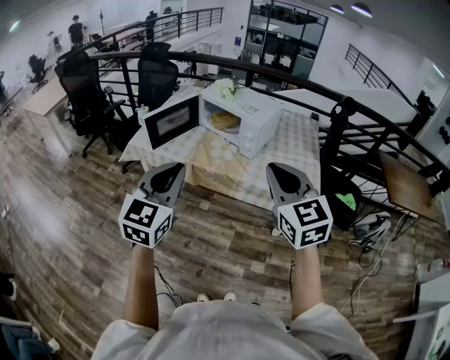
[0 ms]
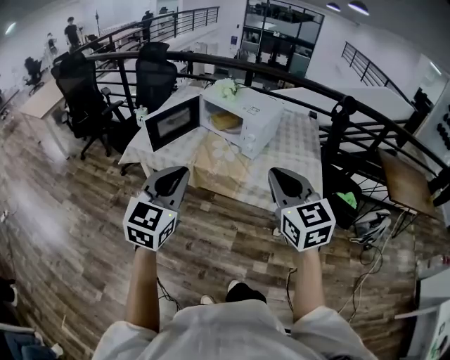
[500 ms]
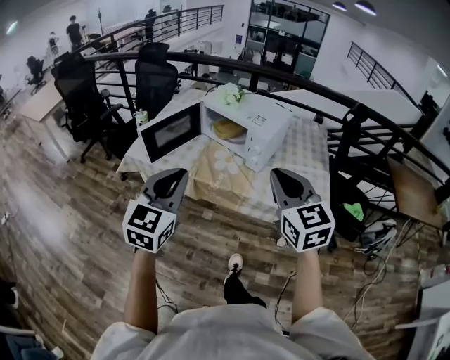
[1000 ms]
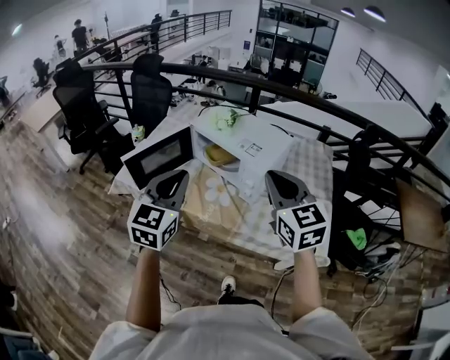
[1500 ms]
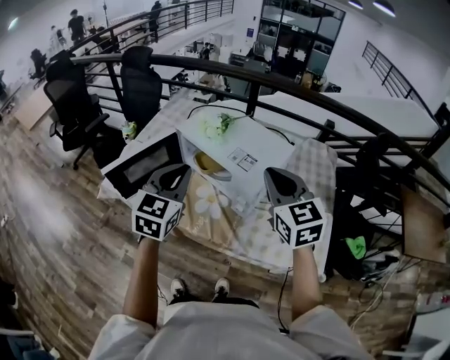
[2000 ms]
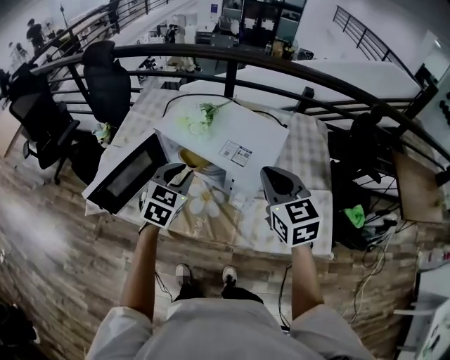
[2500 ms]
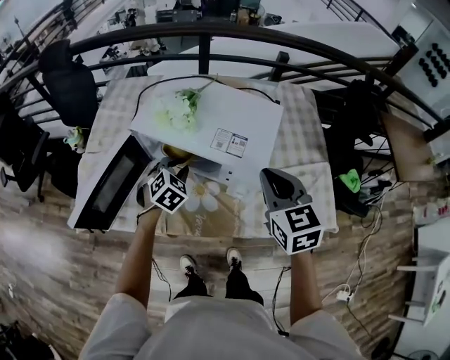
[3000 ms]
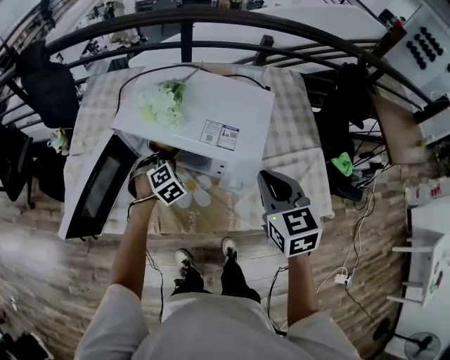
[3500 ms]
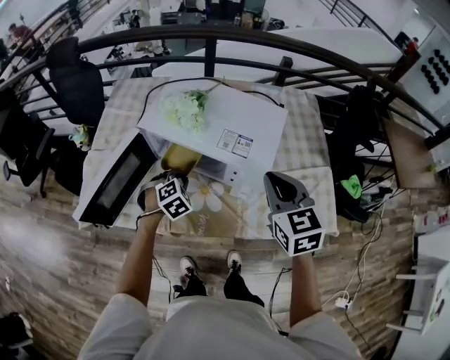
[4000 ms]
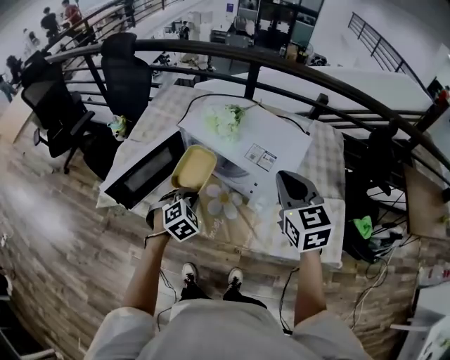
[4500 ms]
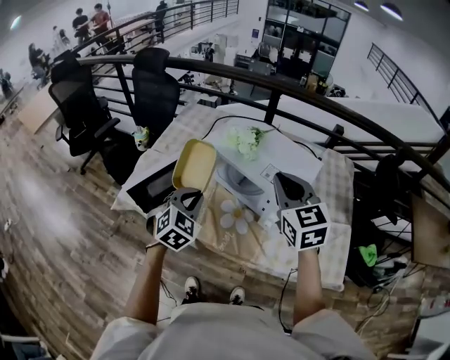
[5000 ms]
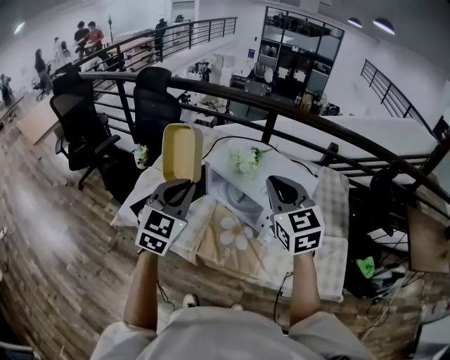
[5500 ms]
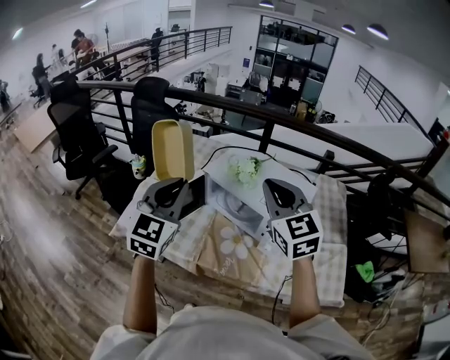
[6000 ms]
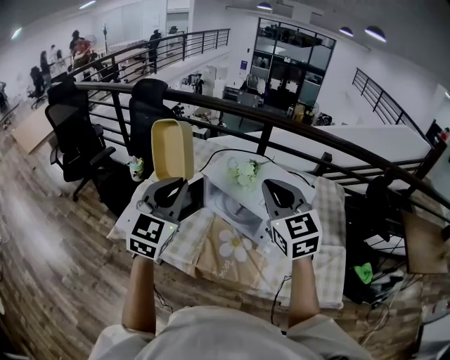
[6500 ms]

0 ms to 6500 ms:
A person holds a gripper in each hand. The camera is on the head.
0 ms to 2000 ms: Both grippers move forward, some 20 cm.
2000 ms to 4500 ms: The left gripper is displaced downward by some 25 cm, and tips its fingers downward by some 40 degrees. The right gripper travels downward by roughly 5 cm.
4500 ms to 6500 ms: The left gripper shifts some 30 cm upward, and tips its fingers upward by approximately 50 degrees. The right gripper shifts some 15 cm to the left and upward.

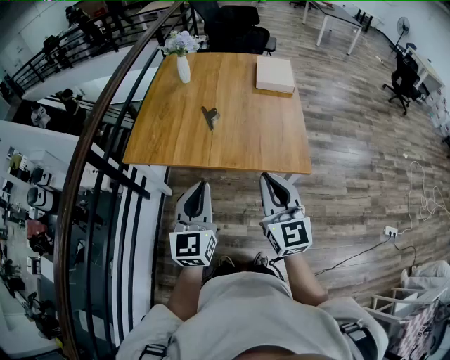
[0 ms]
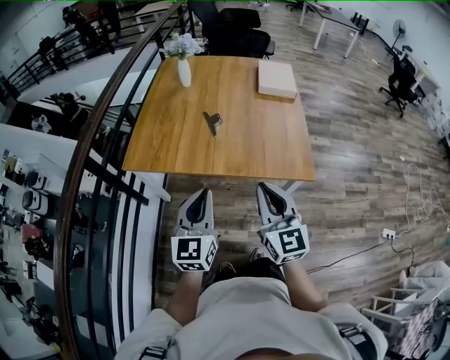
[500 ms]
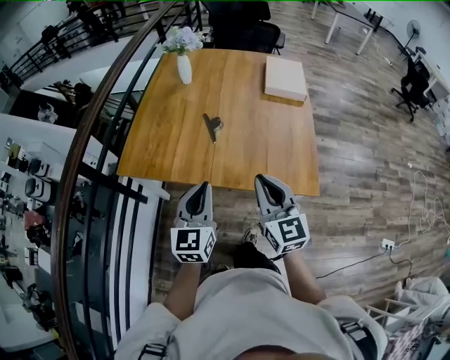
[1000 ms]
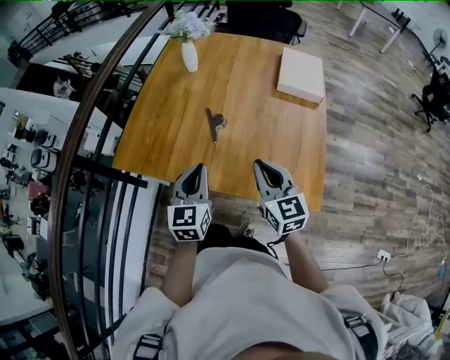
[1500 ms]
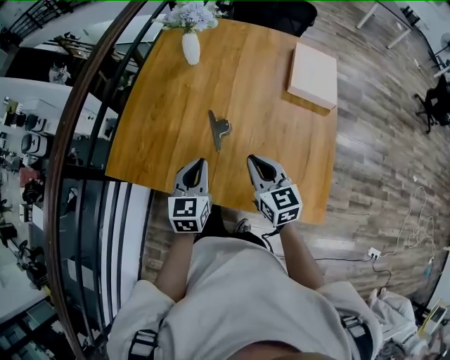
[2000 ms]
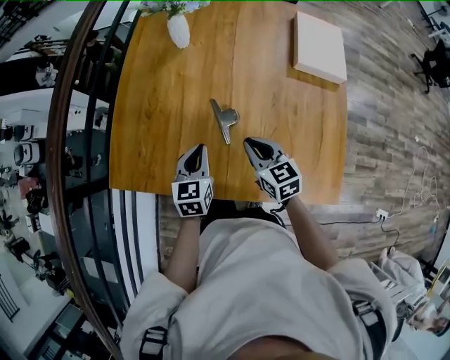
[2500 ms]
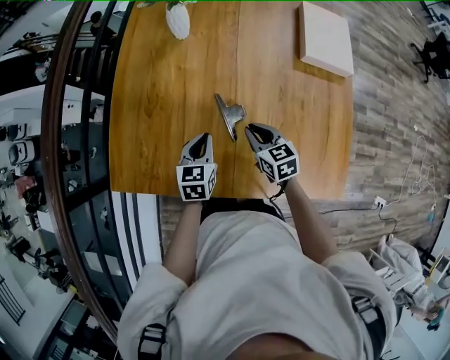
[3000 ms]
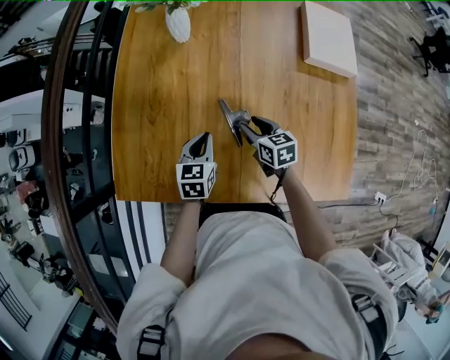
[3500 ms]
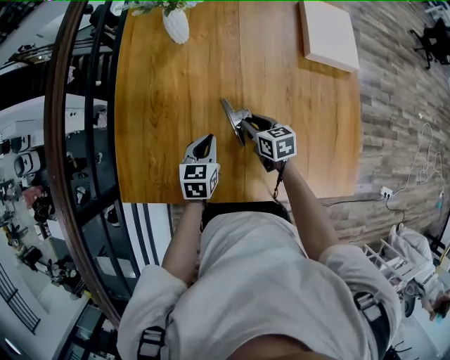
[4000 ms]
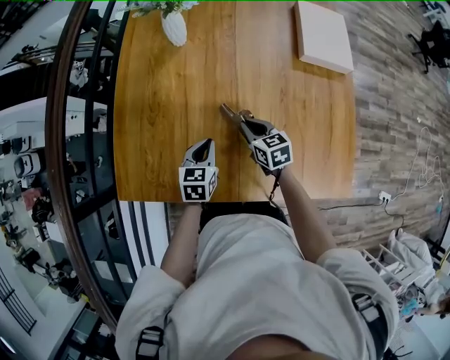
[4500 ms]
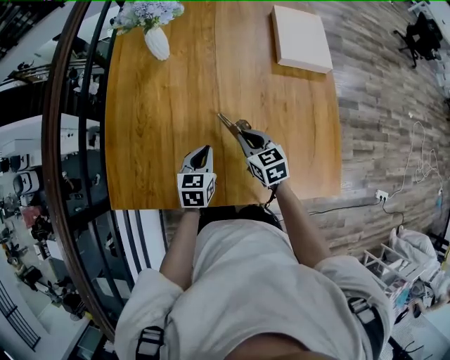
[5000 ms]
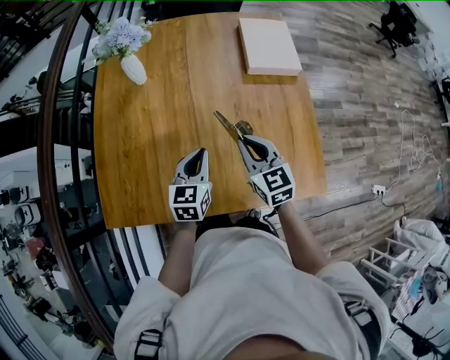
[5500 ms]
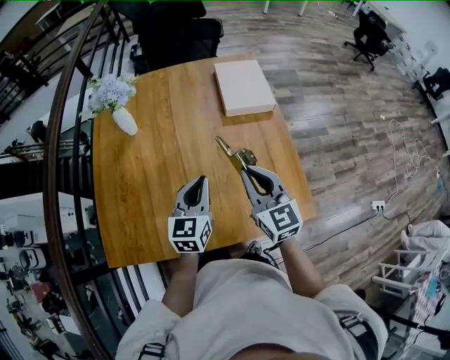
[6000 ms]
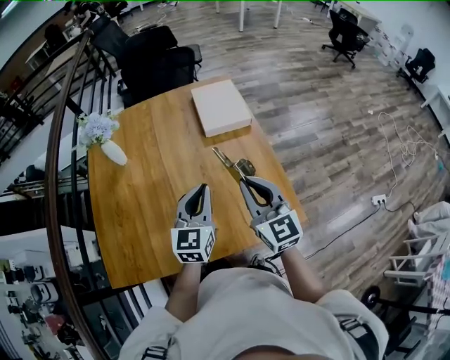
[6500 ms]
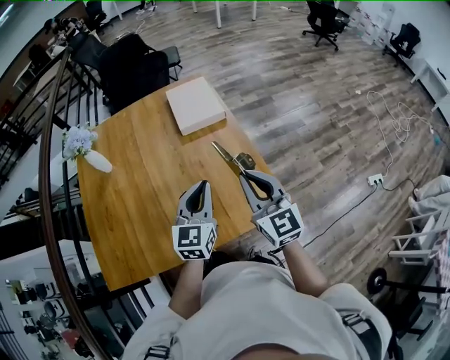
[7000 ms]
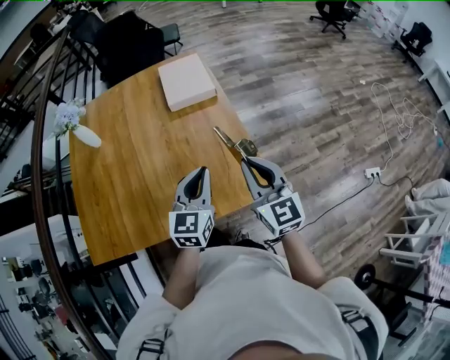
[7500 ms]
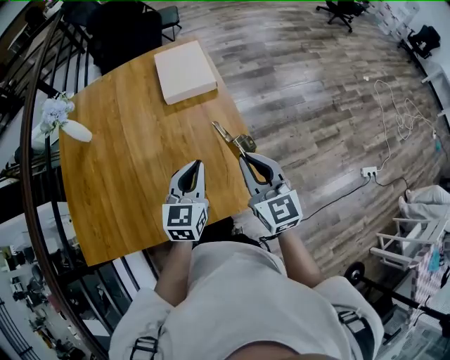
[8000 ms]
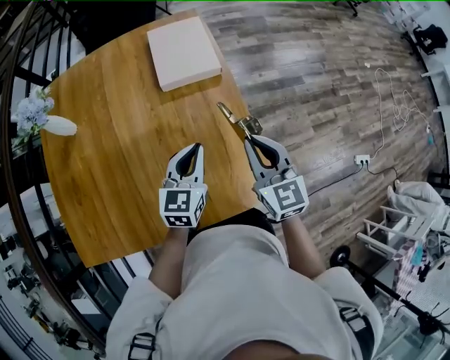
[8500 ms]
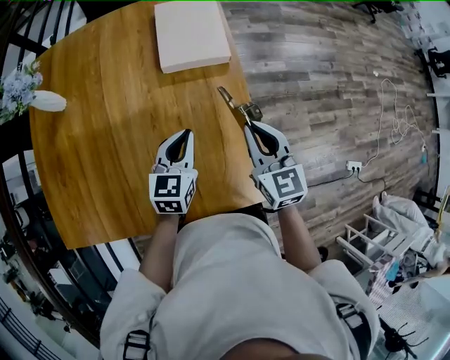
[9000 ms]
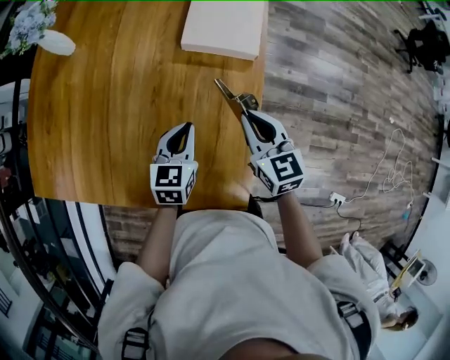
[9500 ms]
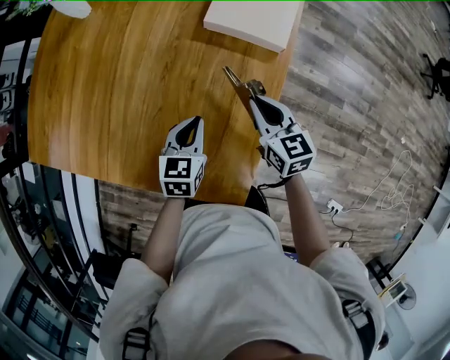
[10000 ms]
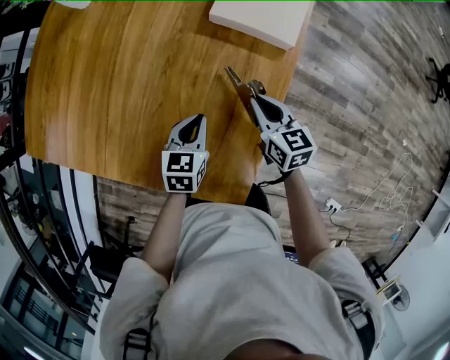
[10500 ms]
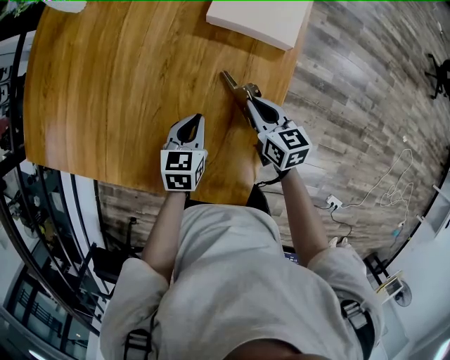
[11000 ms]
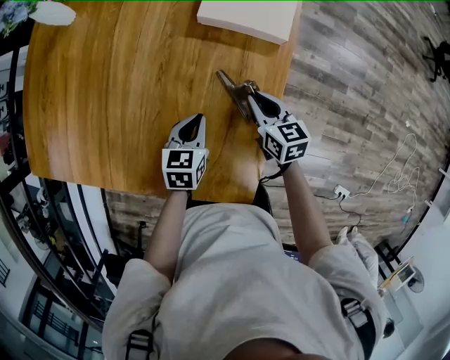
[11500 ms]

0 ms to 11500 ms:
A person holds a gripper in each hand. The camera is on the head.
0 ms to 2000 ms: The two grippers go about 40 cm forward and downward. The left gripper rotates some 20 degrees; the right gripper turns by approximately 30 degrees.
2000 ms to 4000 ms: Both grippers travel together downward and forward, roughly 25 cm. The left gripper swivels some 20 degrees; the right gripper rotates approximately 30 degrees, and opens up.
4000 ms to 6000 ms: The two grippers go approximately 30 cm upward and to the right. The left gripper rotates about 30 degrees. The right gripper points its fingers about 30 degrees further upward, and closes its fingers.
6000 ms to 7500 ms: The left gripper travels to the right by approximately 25 cm, while the right gripper moves to the right and backward, some 25 cm.
7500 ms to 9500 ms: Both grippers move forward and downward, about 30 cm. The right gripper rotates about 30 degrees. The left gripper rotates roughly 30 degrees.
9500 ms to 11500 ms: The grippers both shift downward by approximately 10 cm.

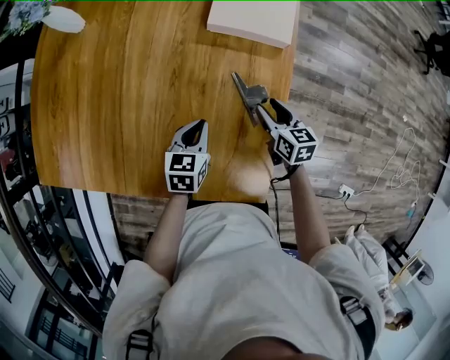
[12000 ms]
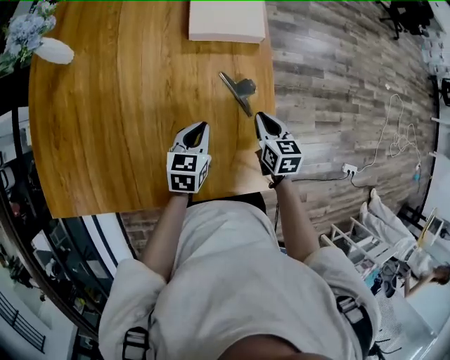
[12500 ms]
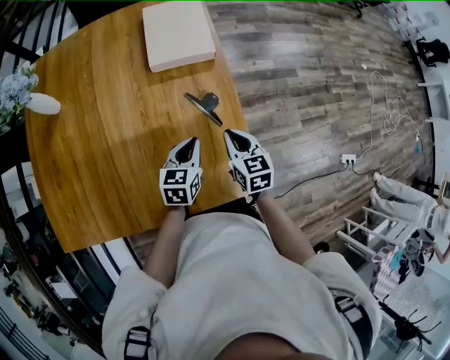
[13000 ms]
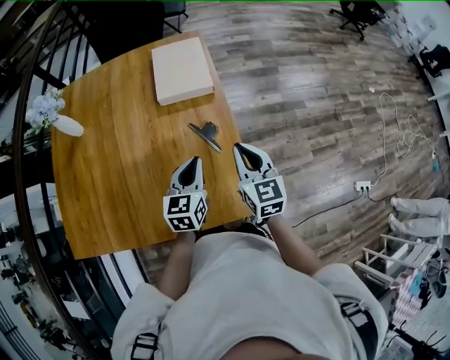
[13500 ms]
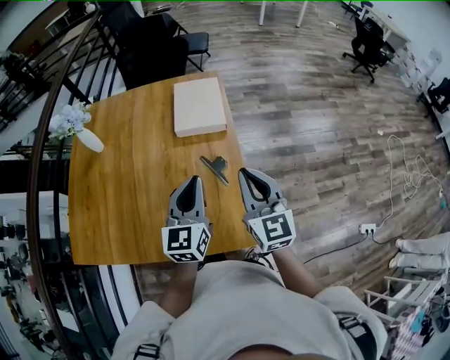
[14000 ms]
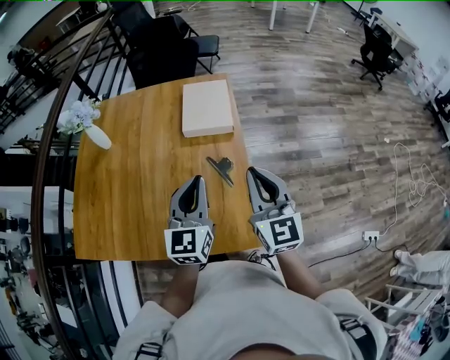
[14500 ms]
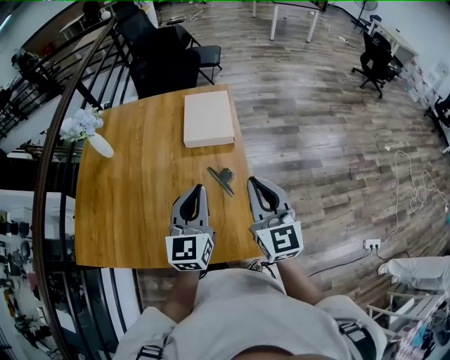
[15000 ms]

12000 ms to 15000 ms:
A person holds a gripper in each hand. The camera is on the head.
12000 ms to 13500 ms: The right gripper is displaced upward and backward by approximately 25 cm, swivels roughly 30 degrees, and closes its fingers. The left gripper is displaced upward and to the right by roughly 20 cm, and rotates some 20 degrees.
13500 ms to 15000 ms: The two grippers go about 15 cm upward. The left gripper changes its angle by some 20 degrees.

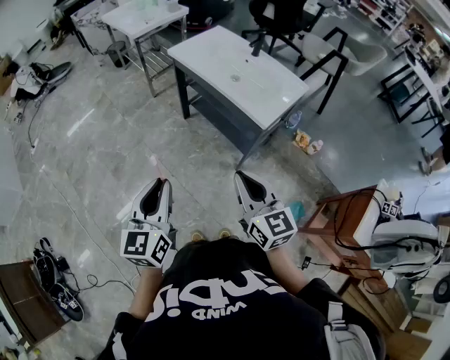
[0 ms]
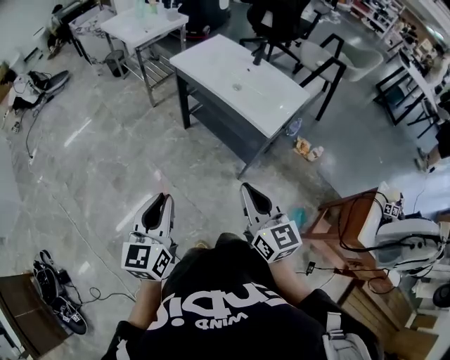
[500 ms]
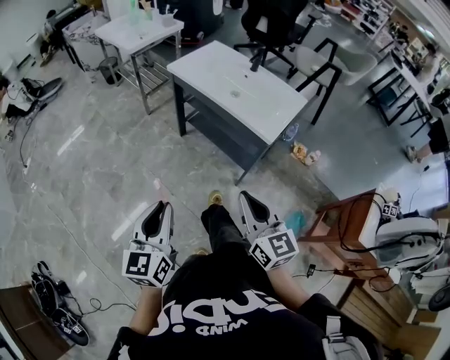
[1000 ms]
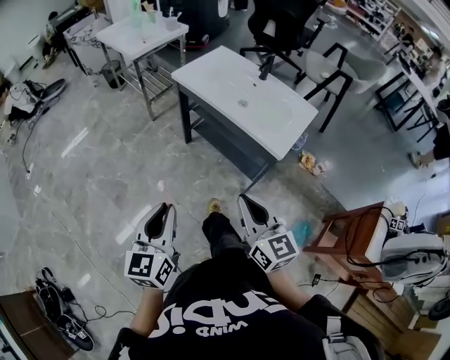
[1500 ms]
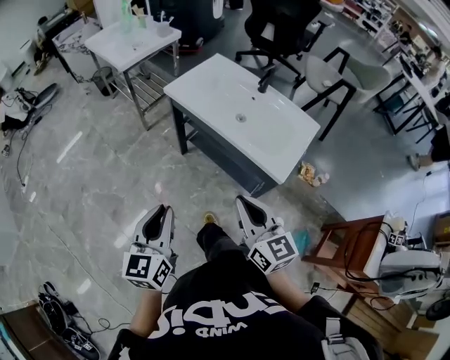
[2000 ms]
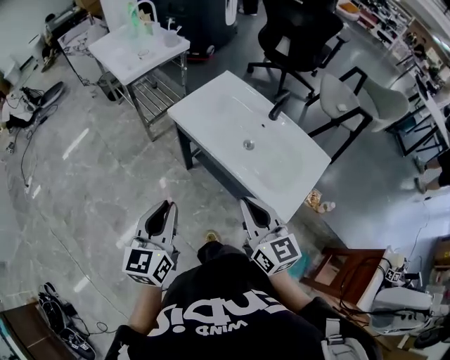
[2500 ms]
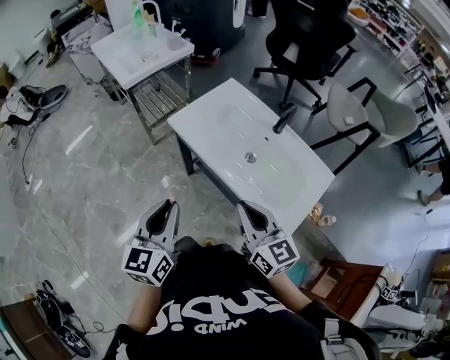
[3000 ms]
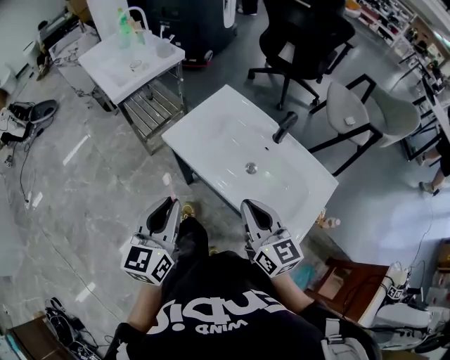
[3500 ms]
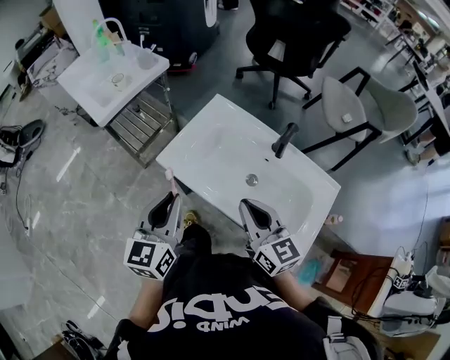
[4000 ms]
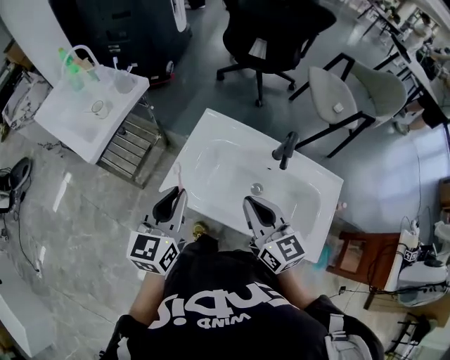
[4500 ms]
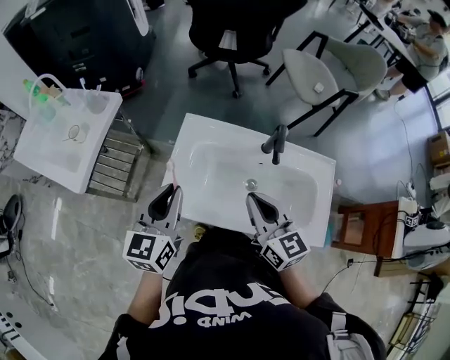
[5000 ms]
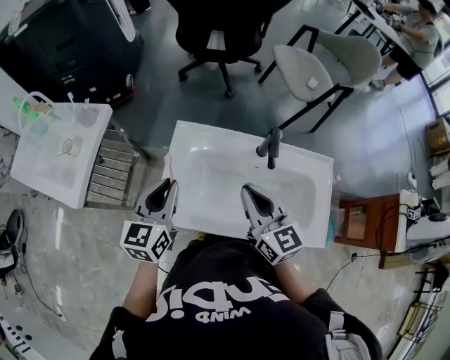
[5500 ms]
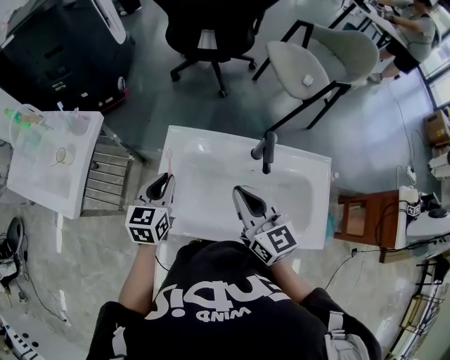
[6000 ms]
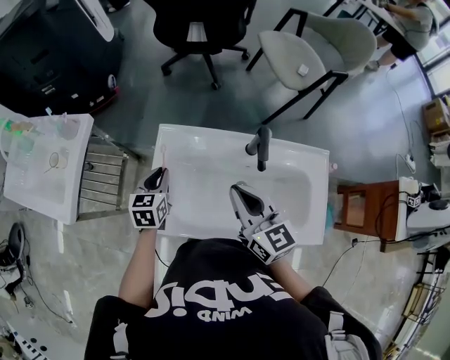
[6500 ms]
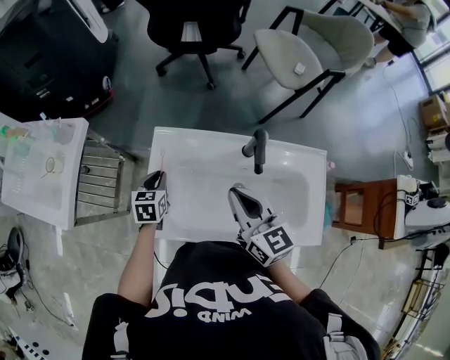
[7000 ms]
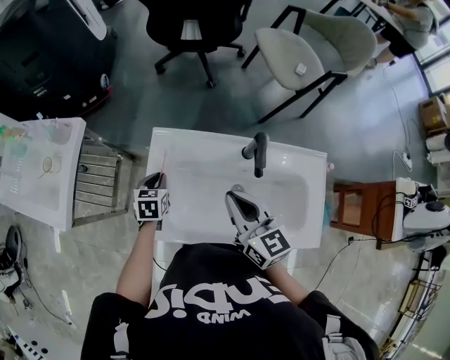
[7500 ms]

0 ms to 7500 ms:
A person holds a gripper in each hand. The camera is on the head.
0 ms to 2000 ms: The grippers both shift forward by approximately 20 cm.
2000 ms to 4000 ms: The two grippers go approximately 35 cm forward.
4000 ms to 5500 ms: The left gripper ends up approximately 20 cm from where it was, and changes its angle by some 30 degrees, while the right gripper moves approximately 15 cm, and rotates approximately 30 degrees.
5500 ms to 7500 ms: The right gripper ends up some 5 cm from where it was, while the left gripper goes approximately 25 cm downward and forward, and angles its fingers downward, by some 30 degrees.
